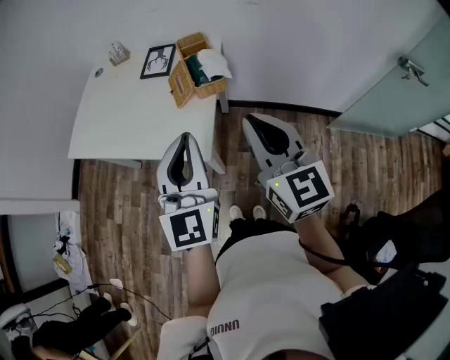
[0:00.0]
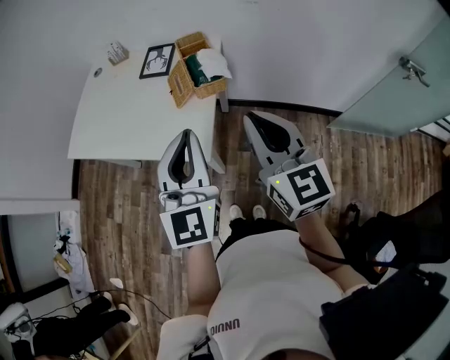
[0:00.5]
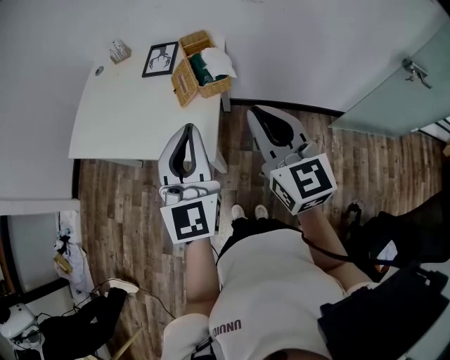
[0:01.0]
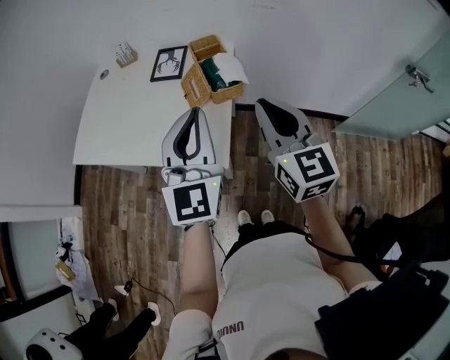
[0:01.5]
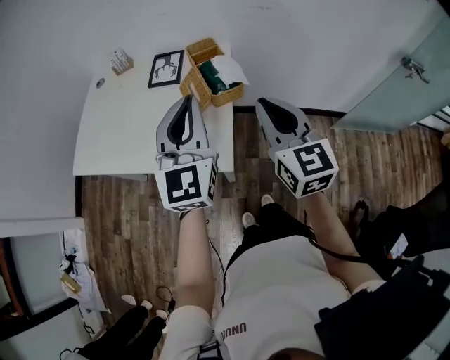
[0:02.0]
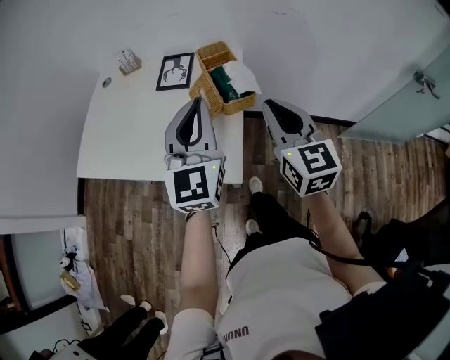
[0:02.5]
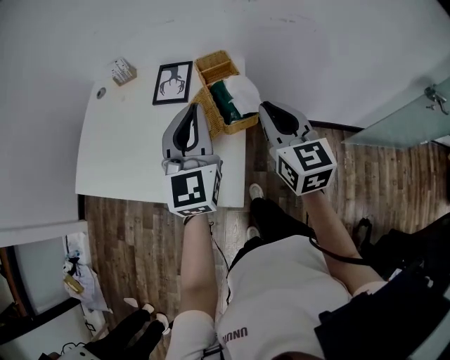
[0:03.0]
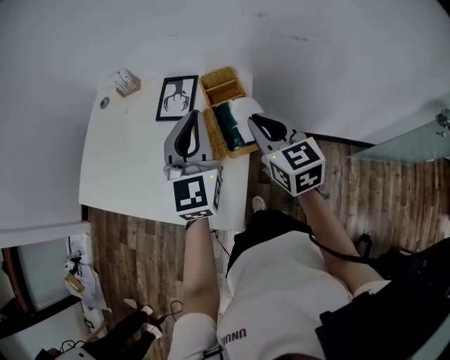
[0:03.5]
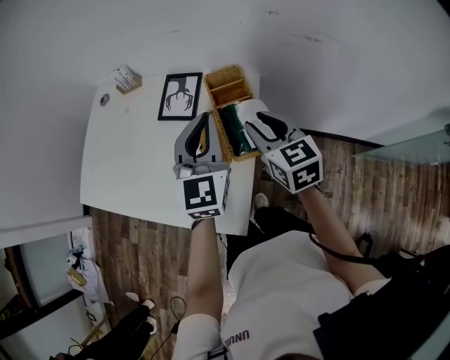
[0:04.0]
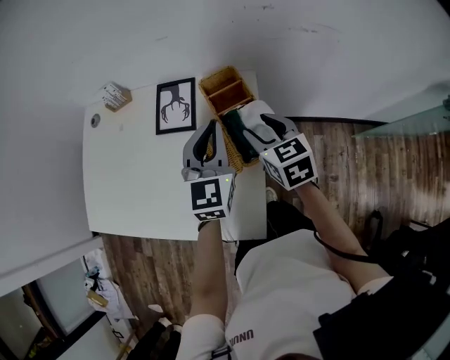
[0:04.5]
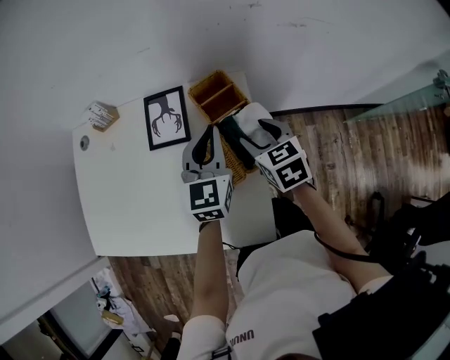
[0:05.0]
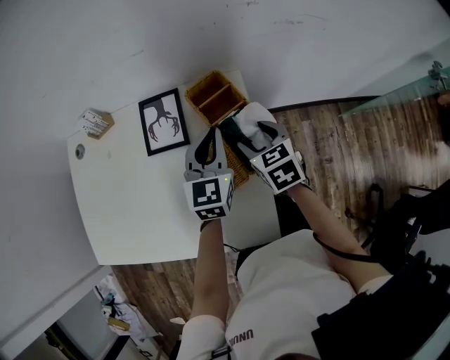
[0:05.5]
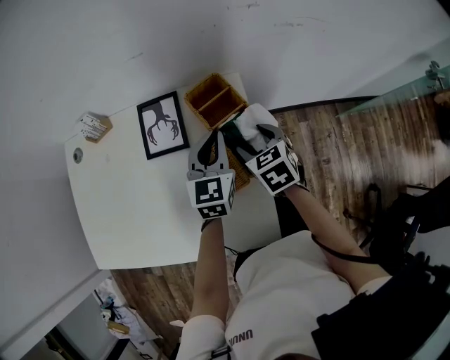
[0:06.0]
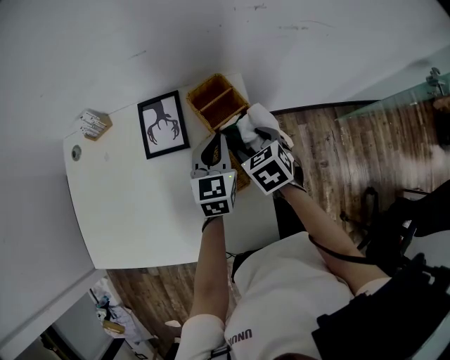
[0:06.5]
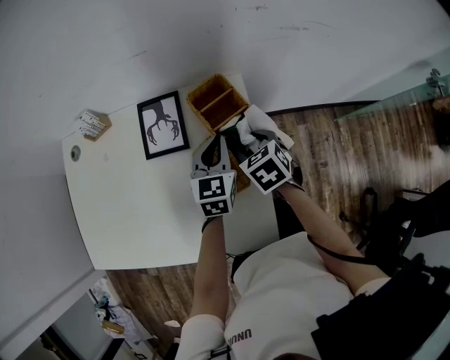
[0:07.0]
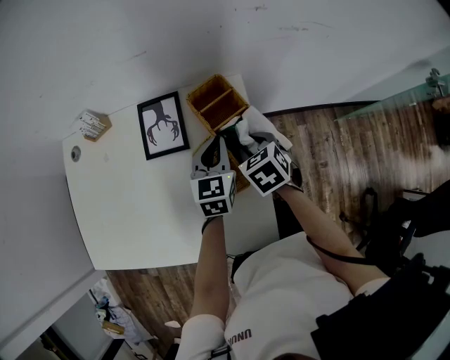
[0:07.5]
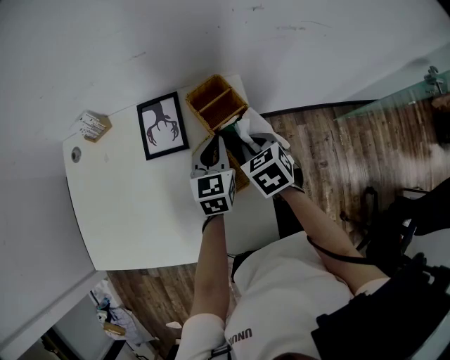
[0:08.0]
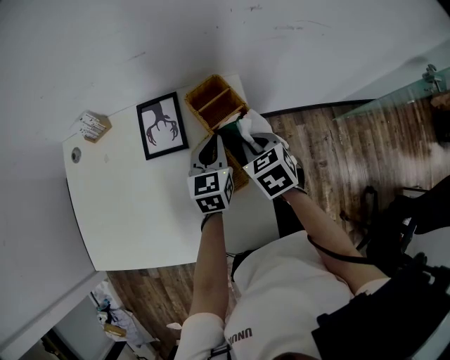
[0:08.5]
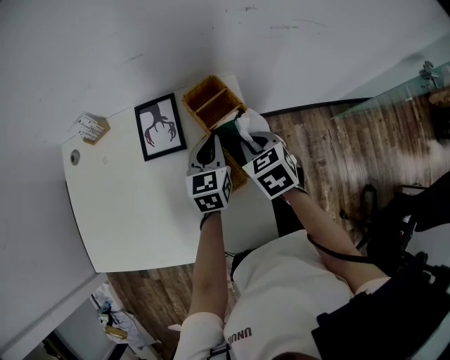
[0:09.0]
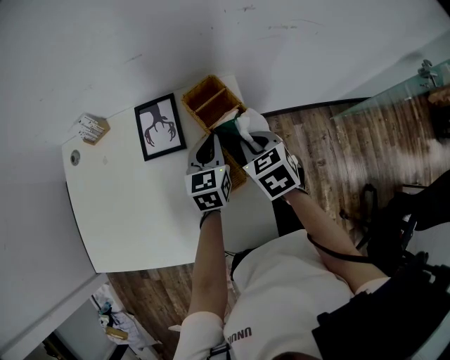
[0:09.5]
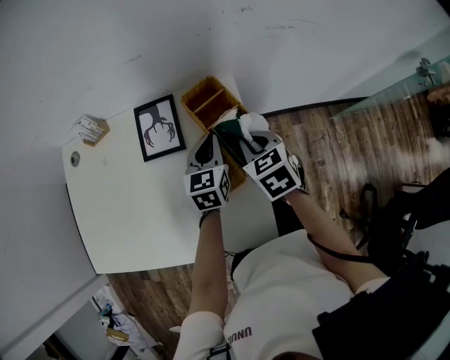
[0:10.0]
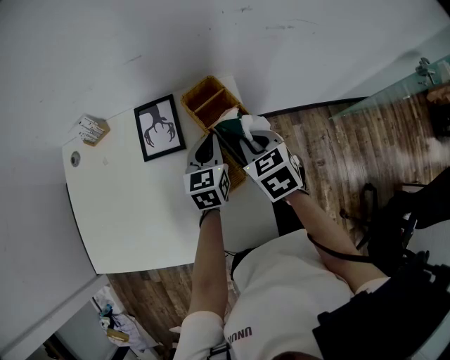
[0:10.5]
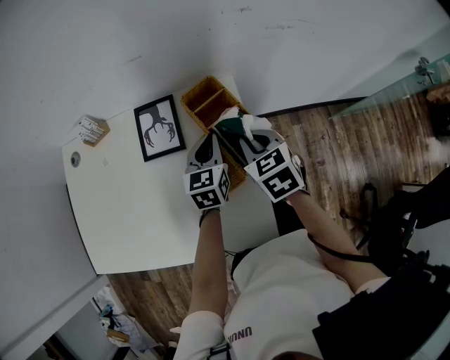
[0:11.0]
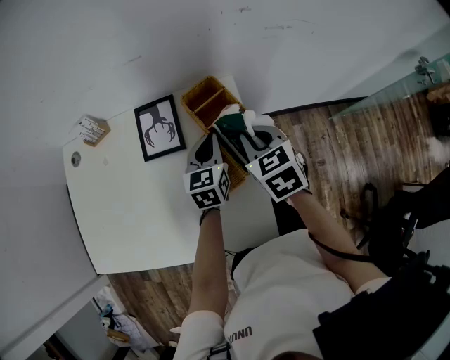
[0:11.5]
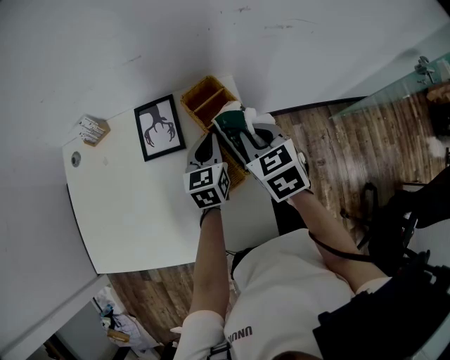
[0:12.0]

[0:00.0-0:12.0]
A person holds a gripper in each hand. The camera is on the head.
0:00.0 to 0:02.0: Both grippers travel together forward, about 10 cm.
0:02.0 to 0:04.0: The left gripper heads forward, covering about 20 cm. The right gripper shifts roughly 25 cm forward and downward, turns by about 20 degrees, and opens its fingers.
0:04.0 to 0:06.0: The right gripper is displaced downward by approximately 10 cm, turns by roughly 30 degrees, and opens; the left gripper is displaced downward and forward by approximately 15 cm, and turns by approximately 30 degrees.
0:06.0 to 0:08.0: The right gripper closes.
0:08.0 to 0:10.0: The grippers move only a little.
0:10.0 to 0:12.0: The grippers make only small movements.

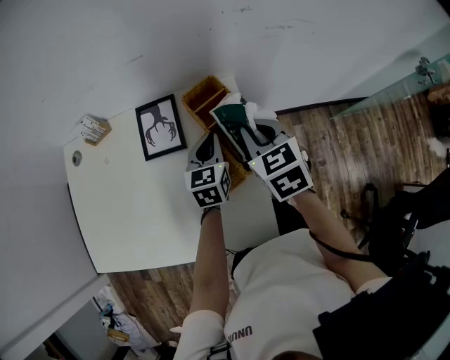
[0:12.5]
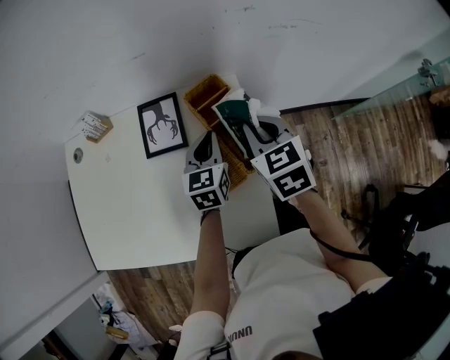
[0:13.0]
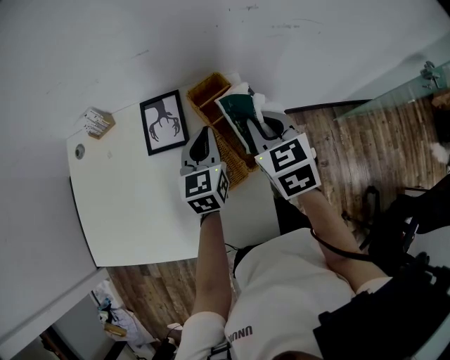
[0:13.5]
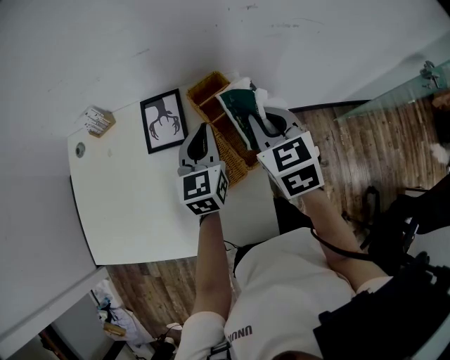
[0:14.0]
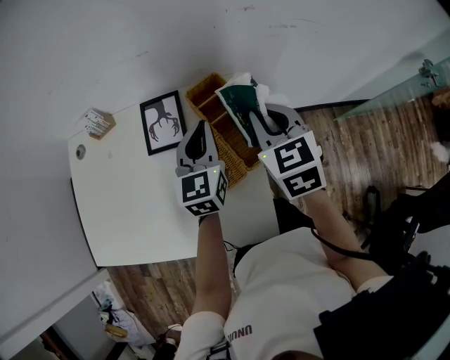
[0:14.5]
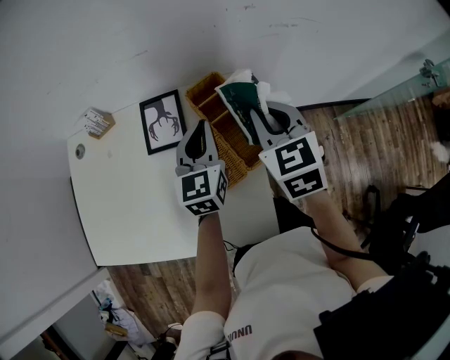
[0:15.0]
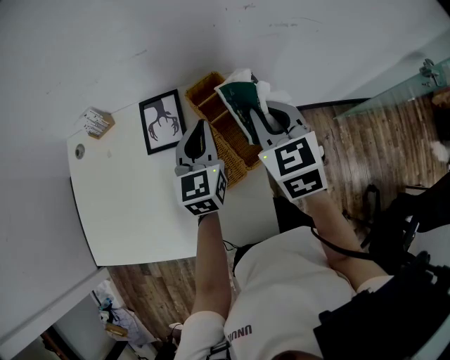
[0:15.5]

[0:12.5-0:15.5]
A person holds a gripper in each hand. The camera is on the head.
0:12.5 to 0:14.0: The left gripper shifts approximately 10 cm upward.
0:14.0 to 0:15.5: The grippers move only a little.

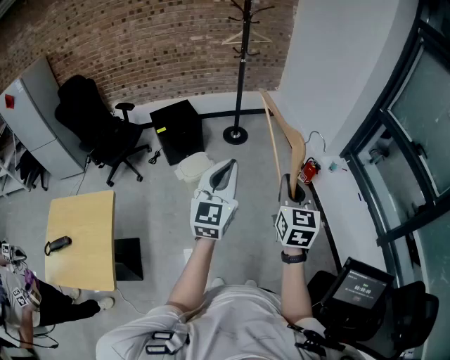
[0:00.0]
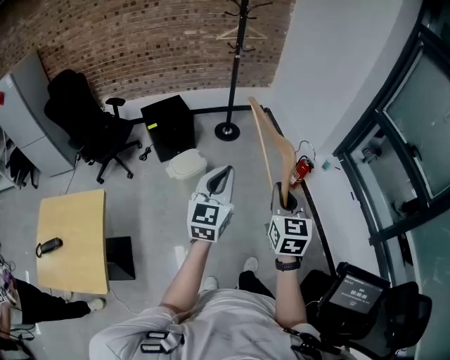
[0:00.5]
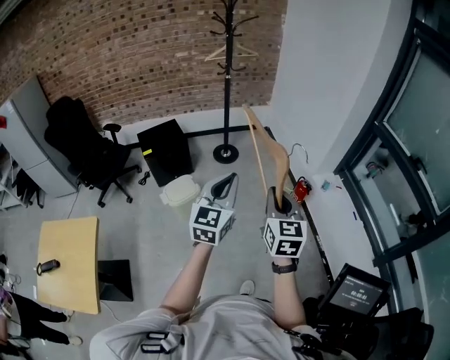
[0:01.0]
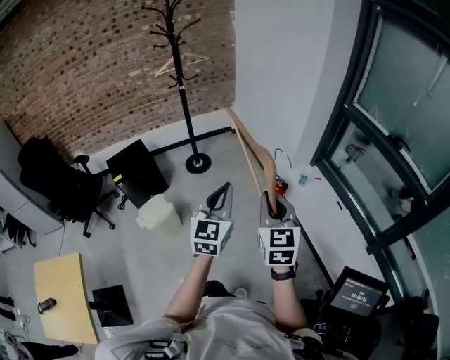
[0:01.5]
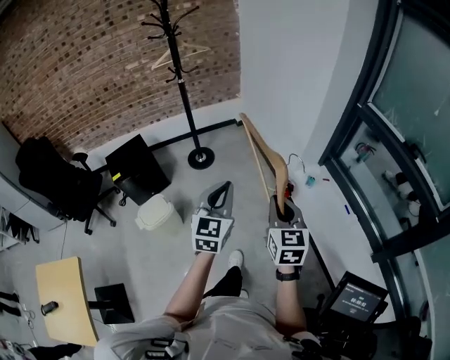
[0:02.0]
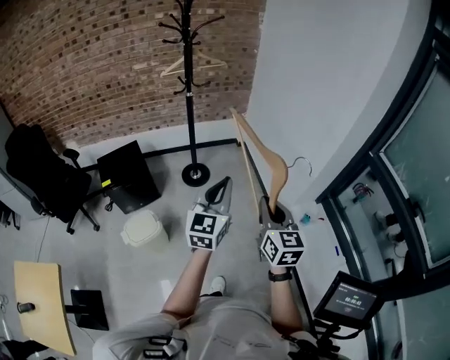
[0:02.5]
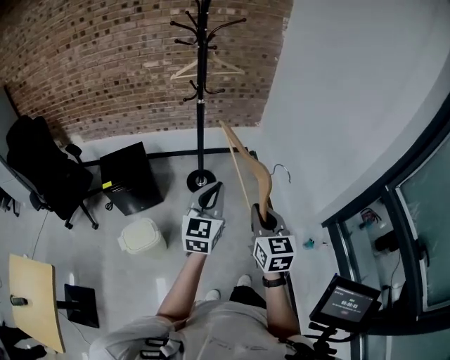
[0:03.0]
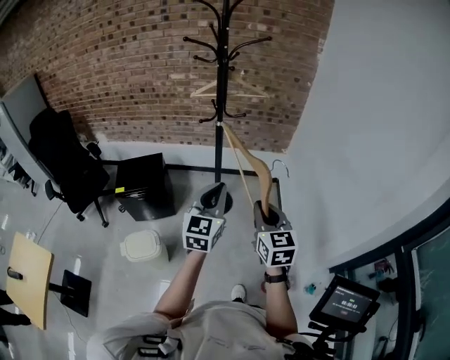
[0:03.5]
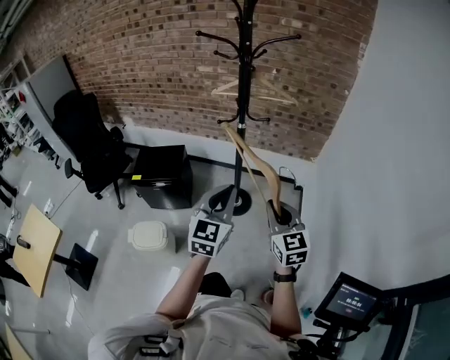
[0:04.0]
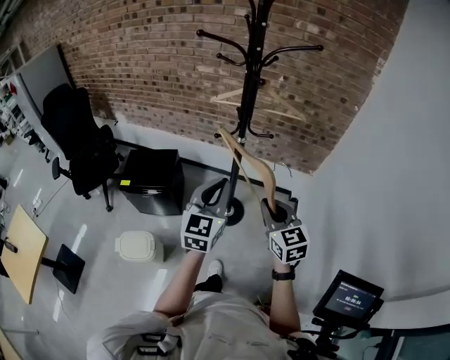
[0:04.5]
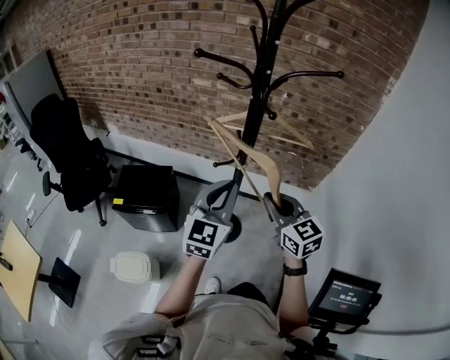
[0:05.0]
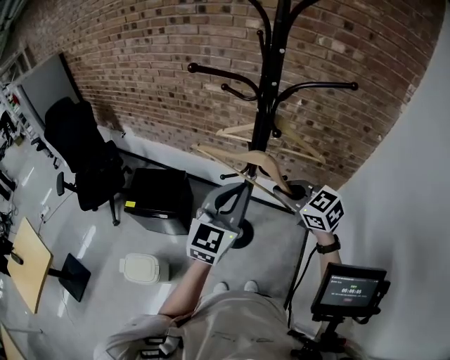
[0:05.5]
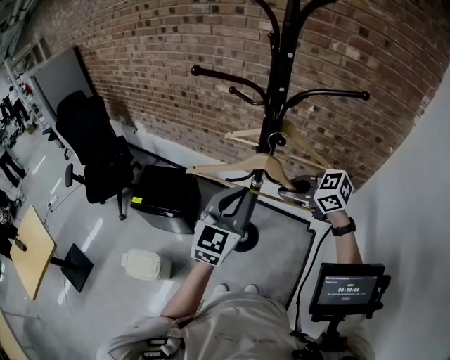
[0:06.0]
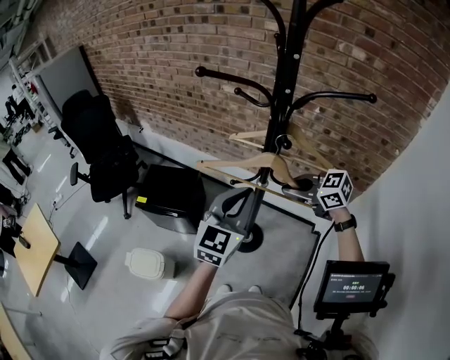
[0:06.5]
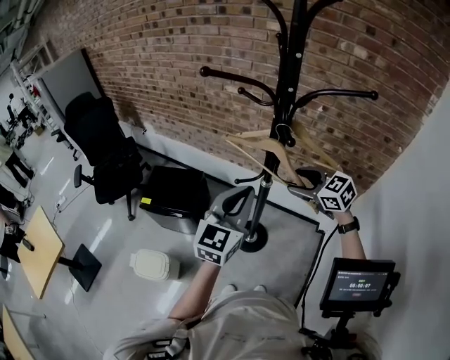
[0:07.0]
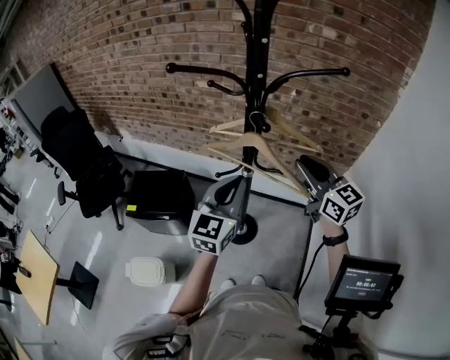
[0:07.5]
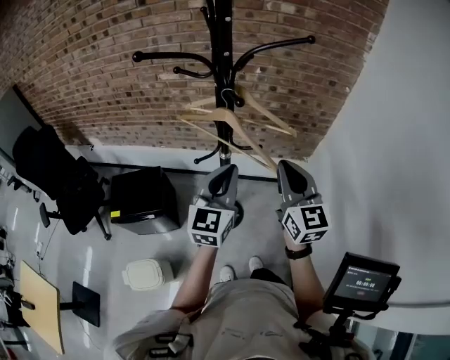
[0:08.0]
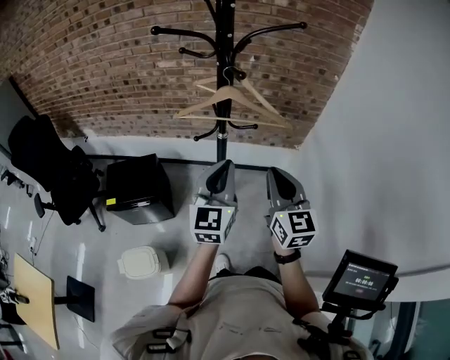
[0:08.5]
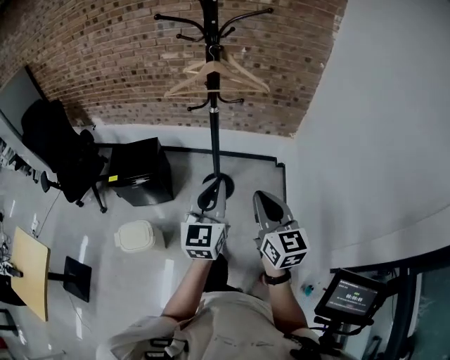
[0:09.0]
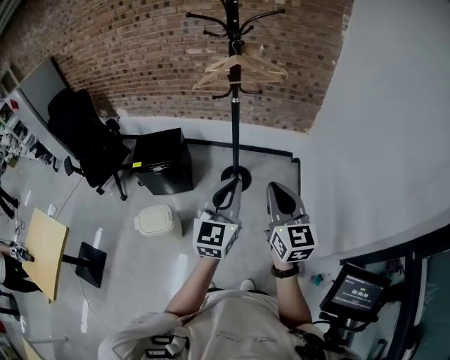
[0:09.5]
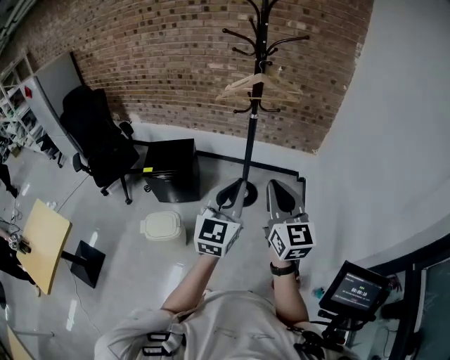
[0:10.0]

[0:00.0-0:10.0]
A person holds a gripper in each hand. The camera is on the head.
0:00.0 to 0:02.0: Both grippers travel together forward and to the right, roughly 40 cm.
0:02.0 to 0:04.0: The two grippers travel together, about 50 cm. The left gripper turns by roughly 30 degrees, while the right gripper rotates about 50 degrees.
0:04.0 to 0:06.0: The right gripper ends up roughly 35 cm from where it was, and changes its angle by roughly 60 degrees, while the left gripper ends up roughly 30 cm from where it was.
0:06.0 to 0:08.0: The right gripper changes place by about 10 cm, tips its fingers upward by approximately 30 degrees, and opens and closes again.
0:08.0 to 0:10.0: The two grippers travel together, backward, approximately 40 cm.

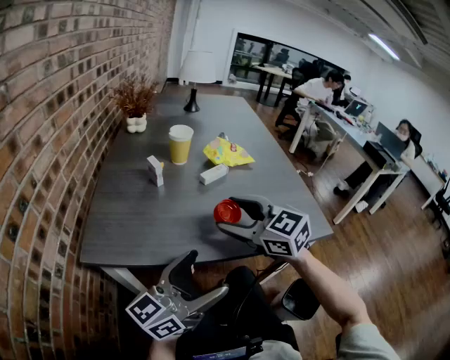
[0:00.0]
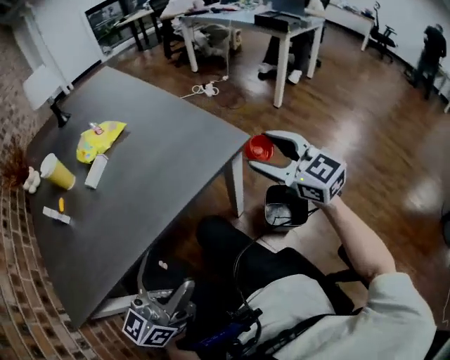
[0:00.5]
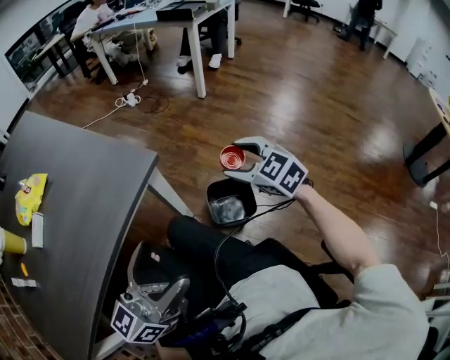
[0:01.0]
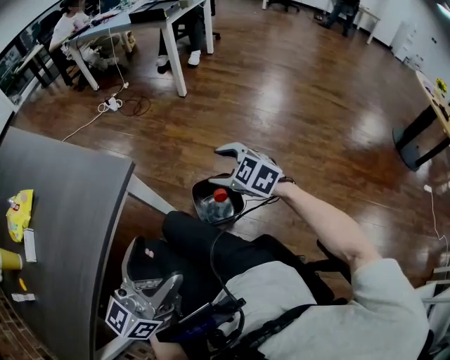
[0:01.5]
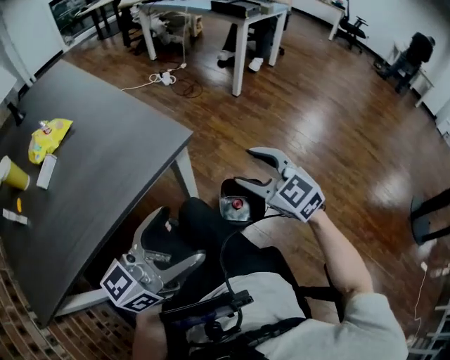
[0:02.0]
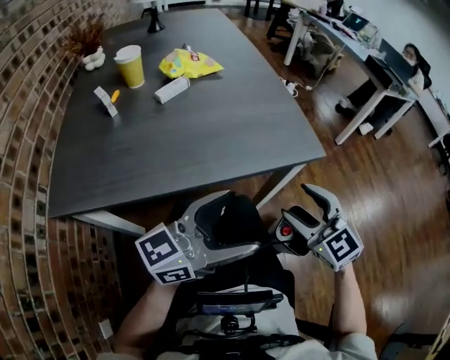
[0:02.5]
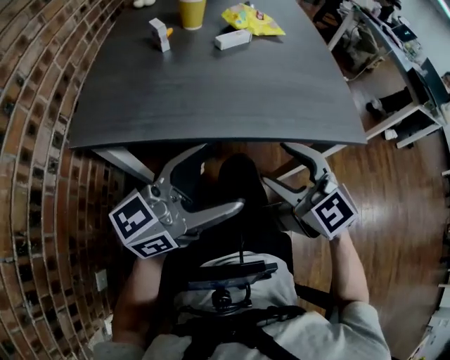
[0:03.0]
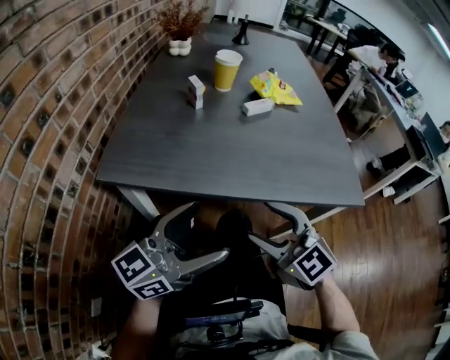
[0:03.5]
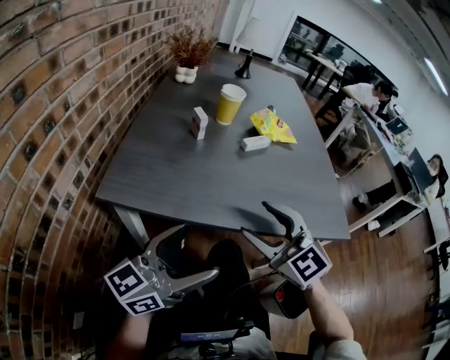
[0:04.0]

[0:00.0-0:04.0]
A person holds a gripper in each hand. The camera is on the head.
0:00.0 to 0:02.0: The right gripper moves roughly 50 cm, and changes its angle by about 40 degrees. The left gripper changes place by some 30 cm, and changes its angle by about 30 degrees.
0:02.0 to 0:04.0: The left gripper shifts by some 35 cm, and changes its angle by some 40 degrees. Meanwhile the right gripper moves some 50 cm, and rotates roughly 50 degrees.
